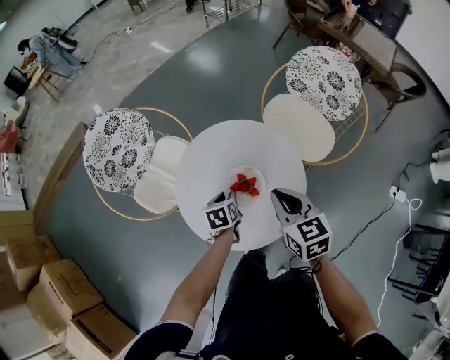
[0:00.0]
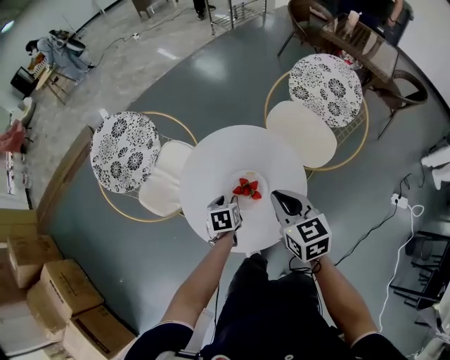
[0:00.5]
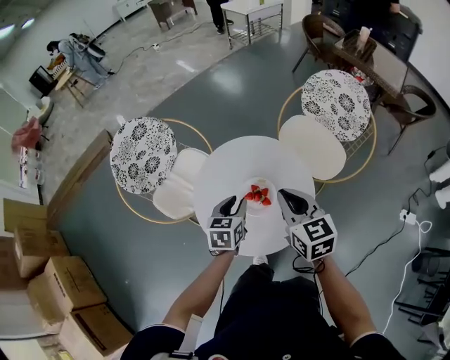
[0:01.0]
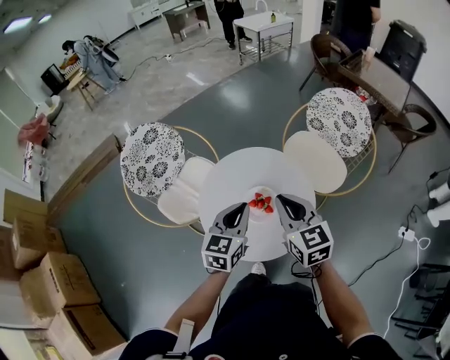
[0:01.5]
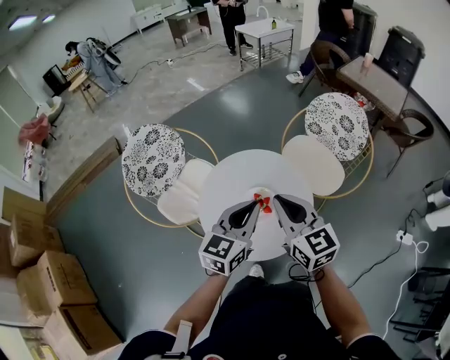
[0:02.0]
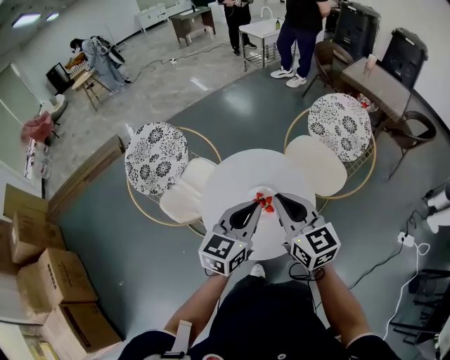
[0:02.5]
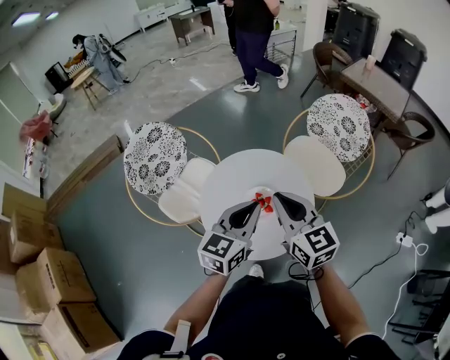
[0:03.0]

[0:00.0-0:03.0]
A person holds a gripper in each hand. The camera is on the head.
0:00.0 to 0:01.5: The left gripper heads upward, covering some 20 cm, points its fingers about 30 degrees further upward, and closes its fingers, while the right gripper travels upward by roughly 10 cm.
0:01.5 to 0:03.0: The left gripper is displaced upward by roughly 5 cm, while the right gripper changes place by roughly 5 cm.

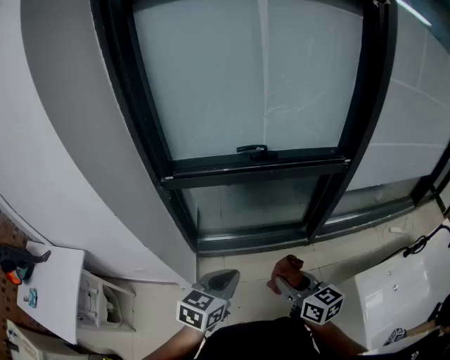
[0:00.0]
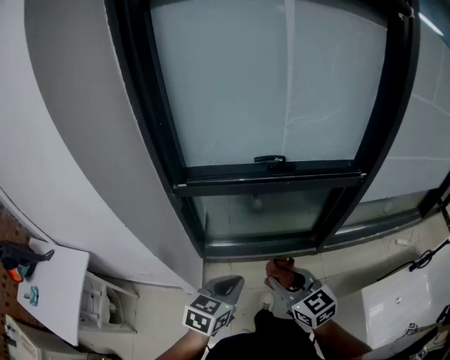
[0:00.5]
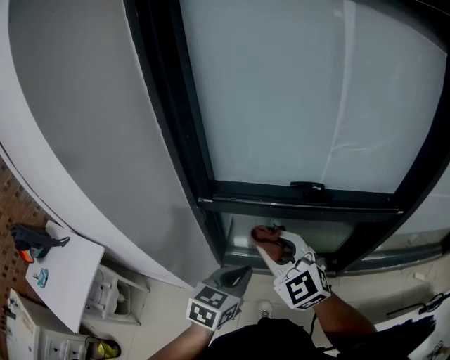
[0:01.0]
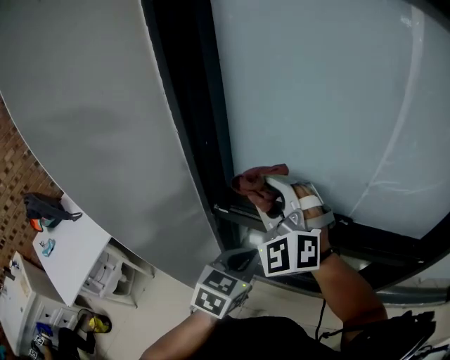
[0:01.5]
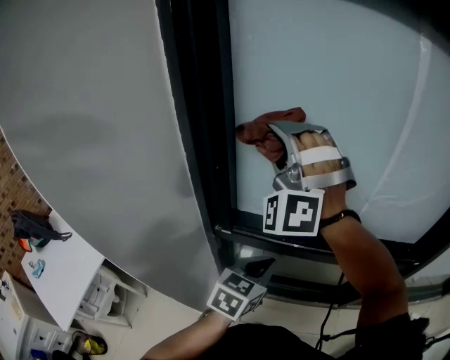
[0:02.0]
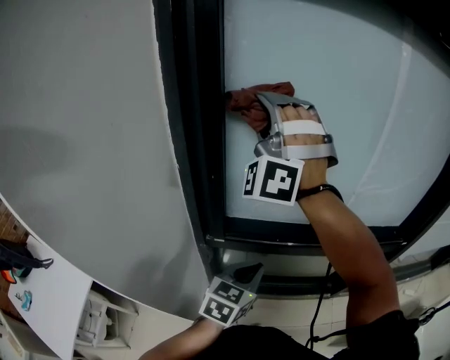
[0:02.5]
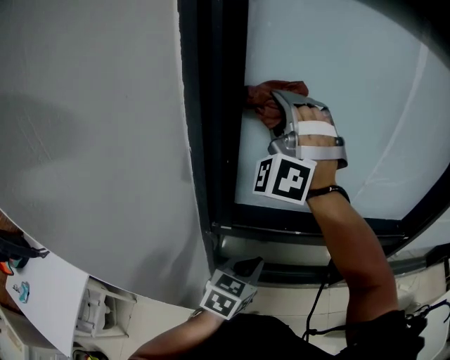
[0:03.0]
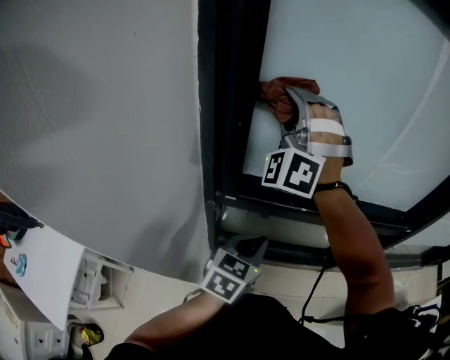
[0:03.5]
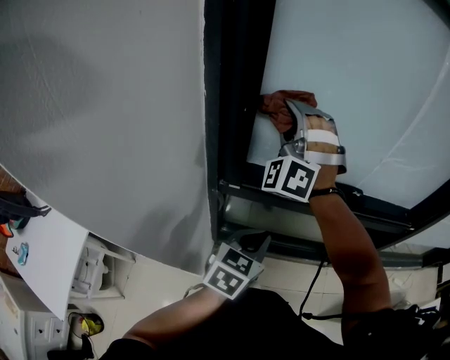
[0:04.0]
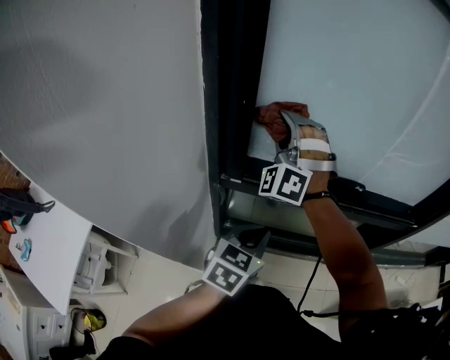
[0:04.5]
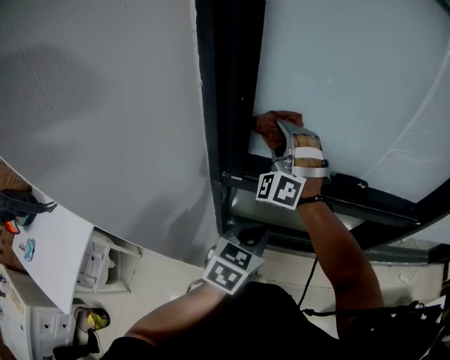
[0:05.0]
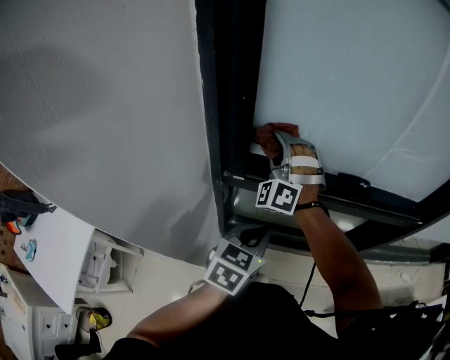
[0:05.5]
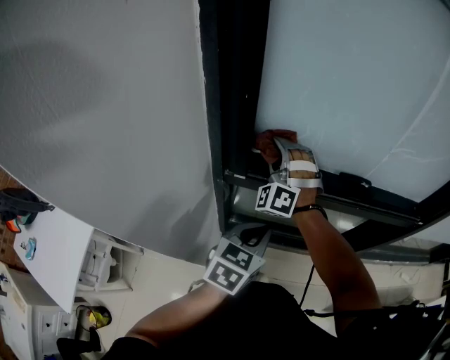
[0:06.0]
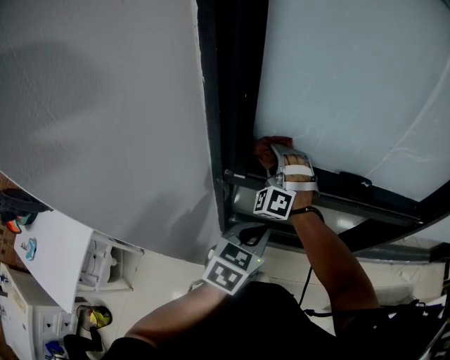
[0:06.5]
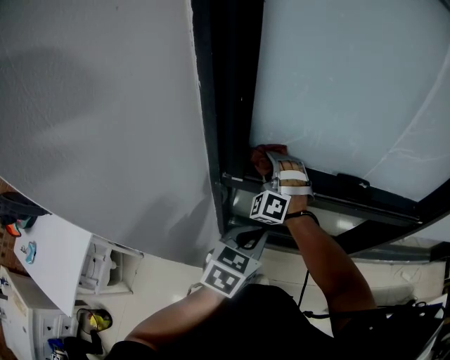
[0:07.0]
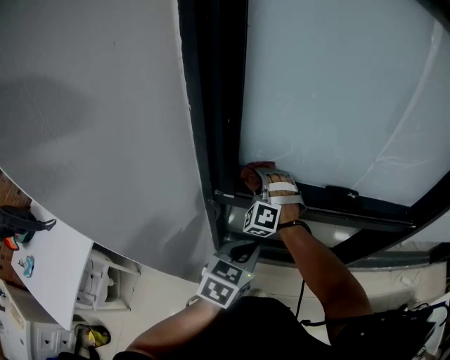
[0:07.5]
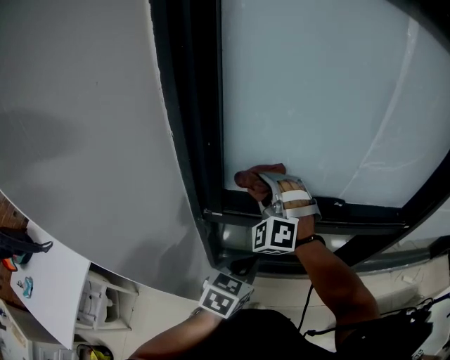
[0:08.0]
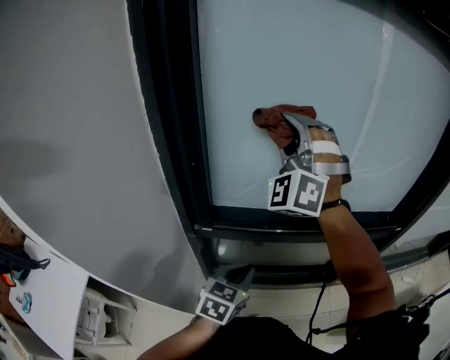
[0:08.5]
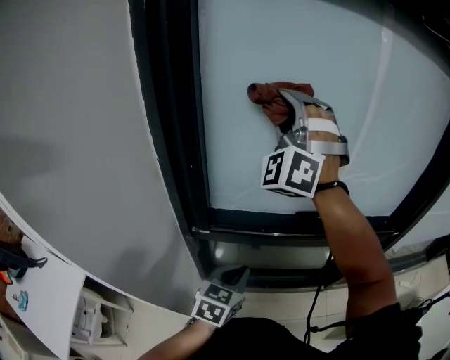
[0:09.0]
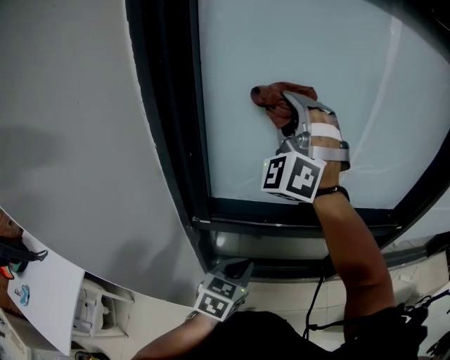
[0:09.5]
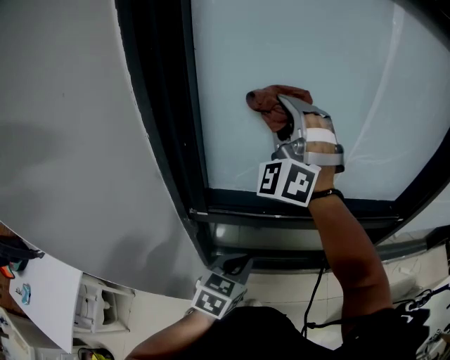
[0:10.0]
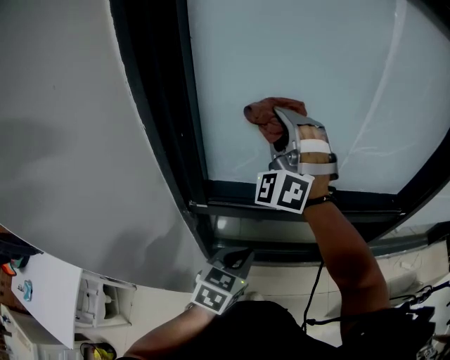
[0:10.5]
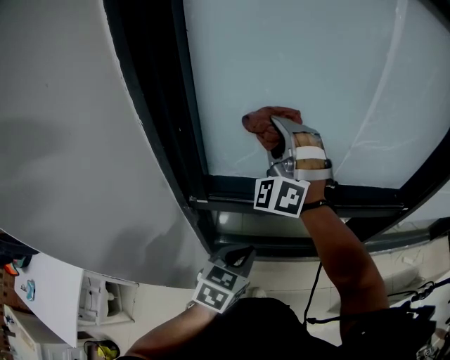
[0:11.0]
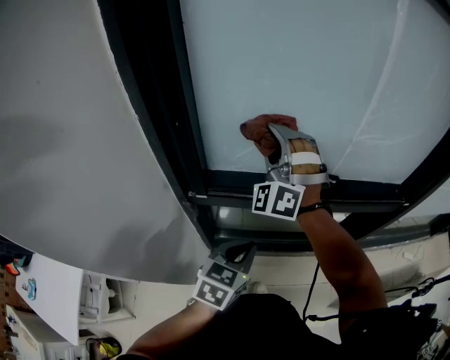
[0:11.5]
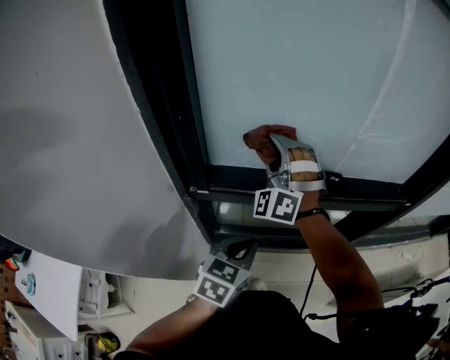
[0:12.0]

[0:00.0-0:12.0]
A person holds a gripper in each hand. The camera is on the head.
0:00.0 to 0:02.0: The left gripper shifts by some 35 cm.
0:02.0 to 0:04.0: The left gripper moves some 10 cm.

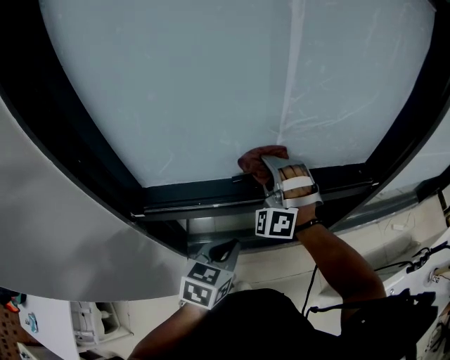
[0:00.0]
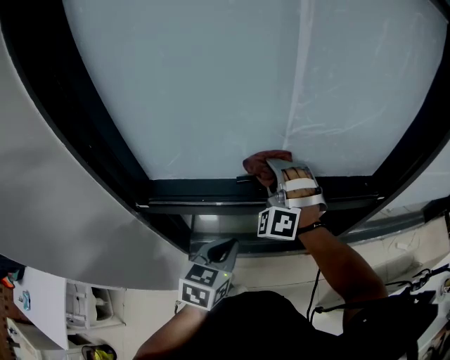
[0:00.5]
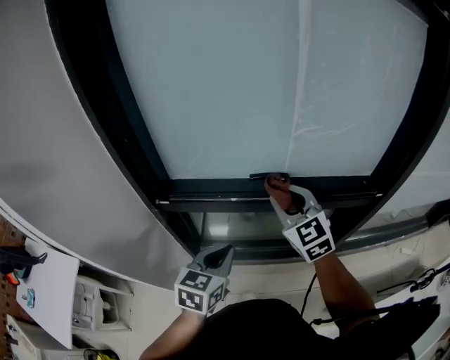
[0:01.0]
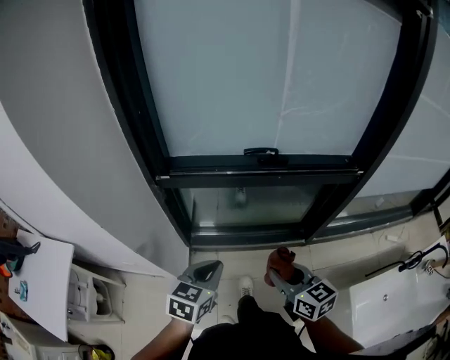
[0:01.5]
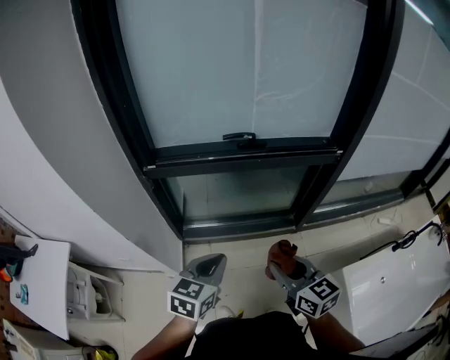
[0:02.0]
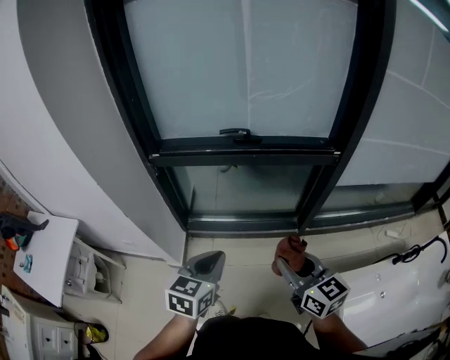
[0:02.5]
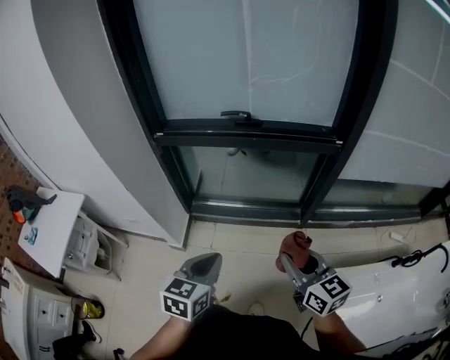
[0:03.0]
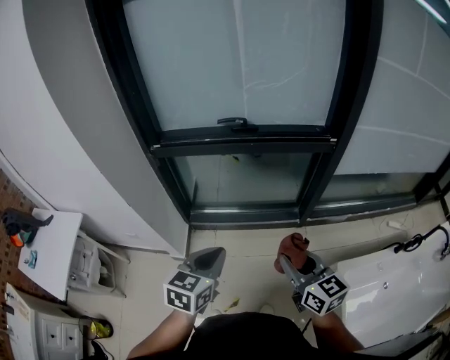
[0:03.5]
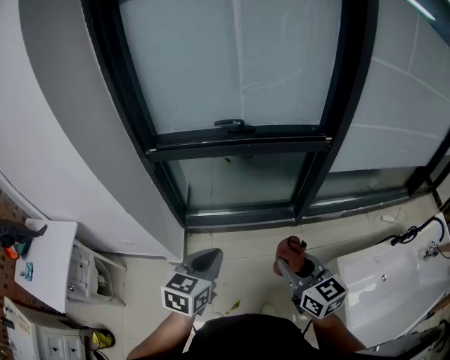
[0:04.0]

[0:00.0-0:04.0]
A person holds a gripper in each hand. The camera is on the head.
0:00.0 to 0:02.0: The left gripper ends up some 25 cm from where it was.

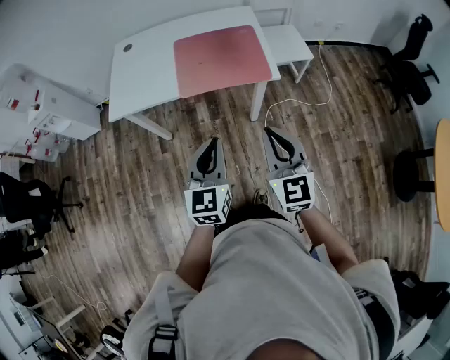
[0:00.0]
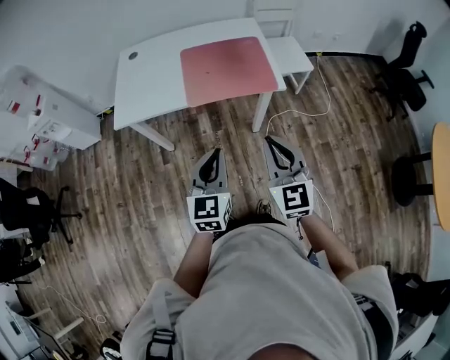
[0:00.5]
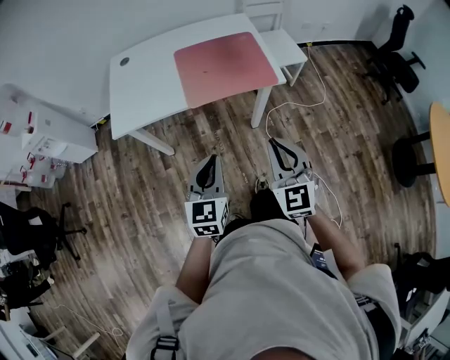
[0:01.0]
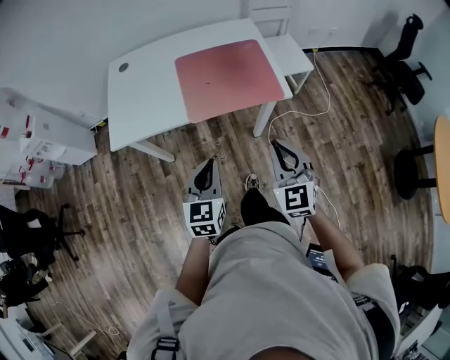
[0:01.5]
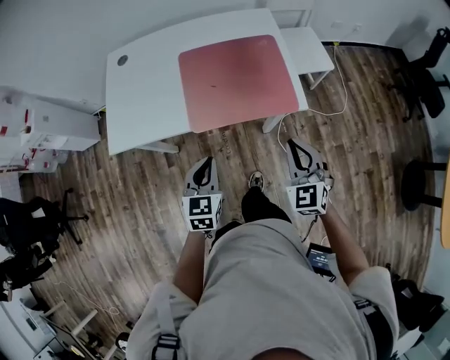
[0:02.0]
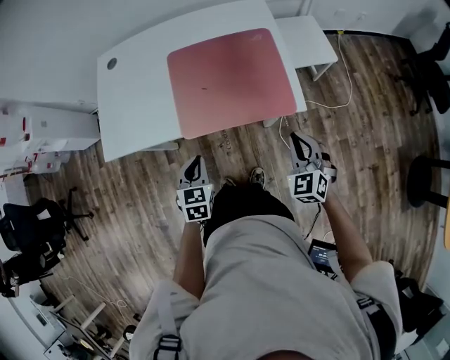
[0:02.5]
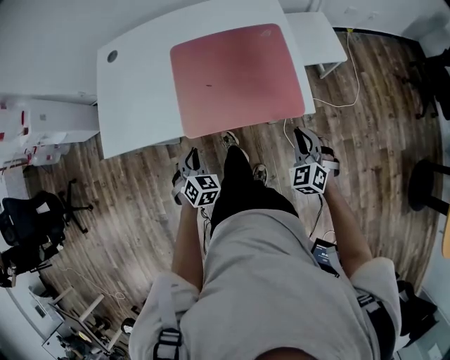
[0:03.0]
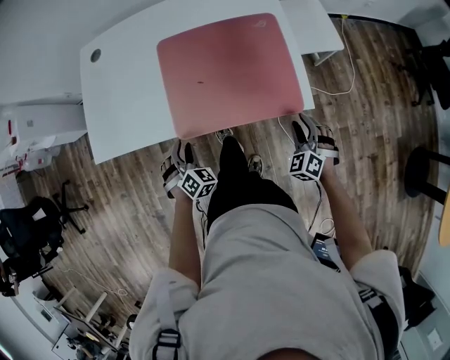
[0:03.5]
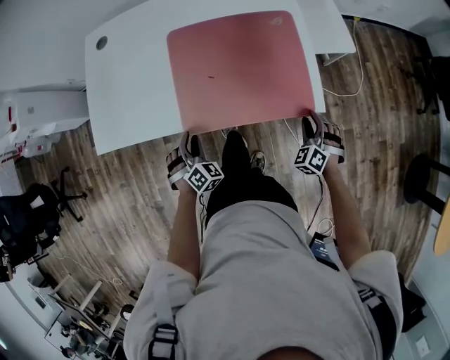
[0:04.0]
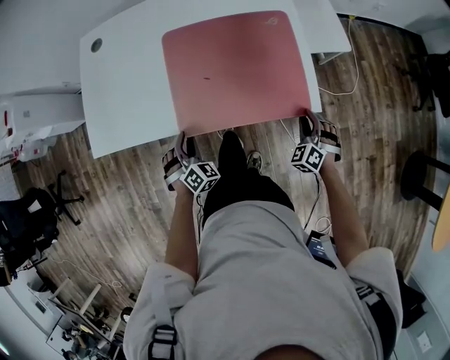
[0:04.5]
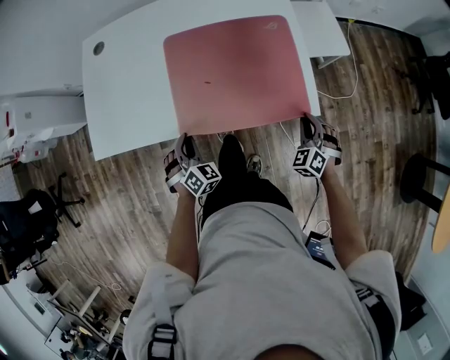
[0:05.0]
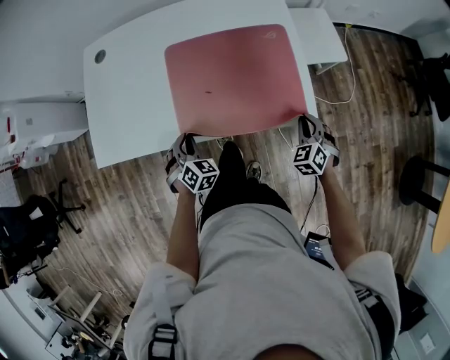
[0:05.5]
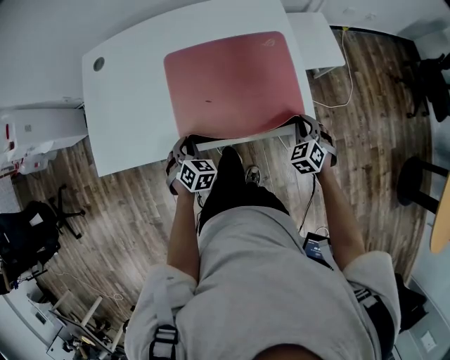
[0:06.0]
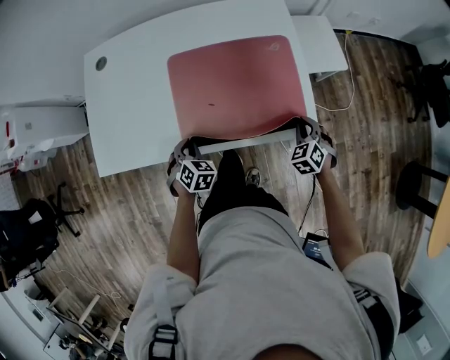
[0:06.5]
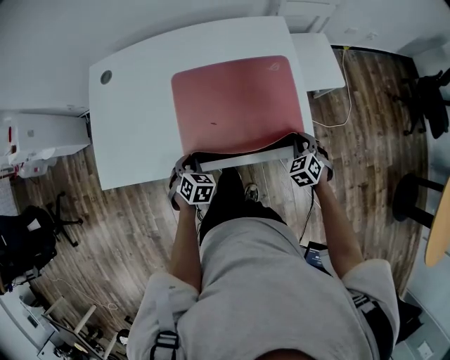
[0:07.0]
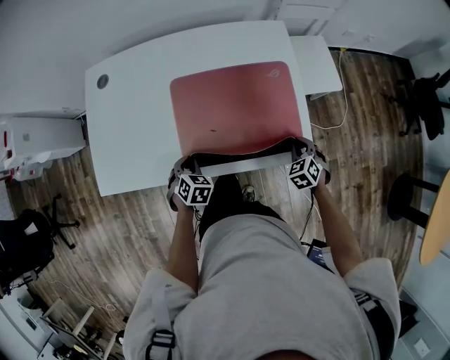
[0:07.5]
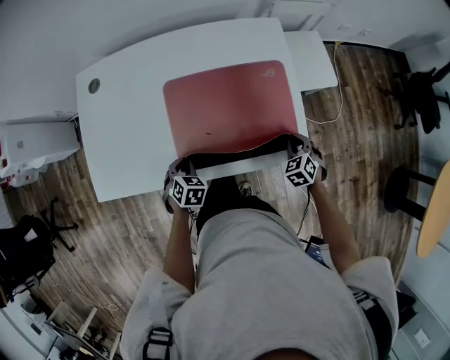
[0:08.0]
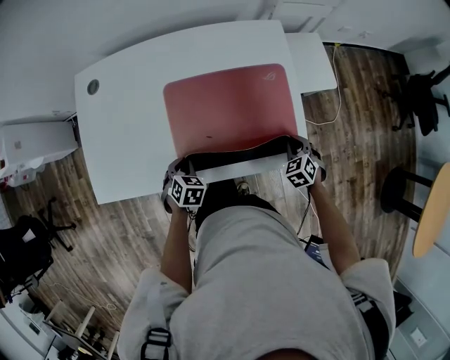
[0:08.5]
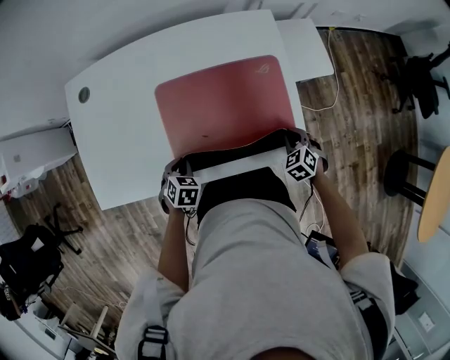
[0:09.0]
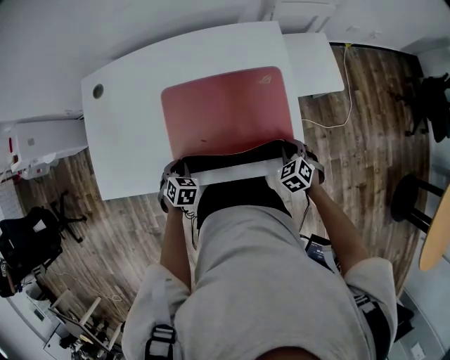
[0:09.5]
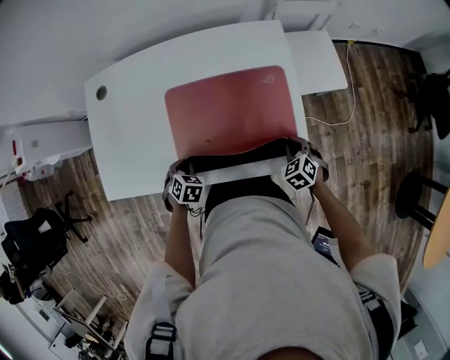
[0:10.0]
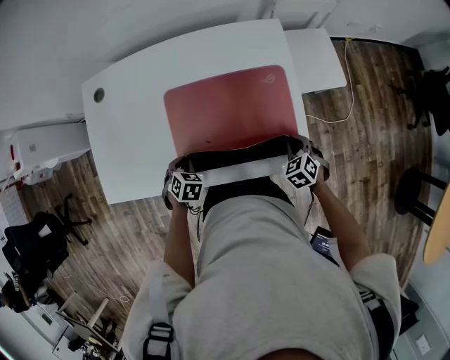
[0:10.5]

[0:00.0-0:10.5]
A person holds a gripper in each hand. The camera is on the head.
0:00.0 to 0:02.0: The left gripper shifts about 25 cm forward, downward and to the left, and turns by roughly 20 degrees, while the right gripper travels forward and downward by some 25 cm, and swivels roughly 20 degrees.
0:02.0 to 0:04.0: The right gripper shifts roughly 30 cm downward, forward and to the right, swivels roughly 40 degrees, and opens its fingers, while the left gripper moves downward and forward, some 25 cm, rotates around the line of its fingers by approximately 50 degrees, clockwise from behind, and opens.
0:04.0 to 0:06.5: Both grippers move forward, roughly 5 cm. The left gripper rotates some 20 degrees, and closes up. The right gripper closes its fingers.
0:06.5 to 0:10.5: The grippers move only a little.
